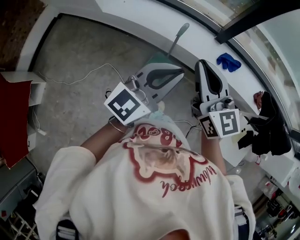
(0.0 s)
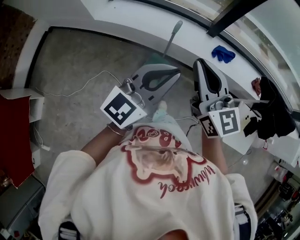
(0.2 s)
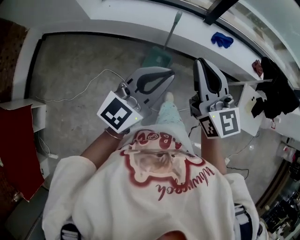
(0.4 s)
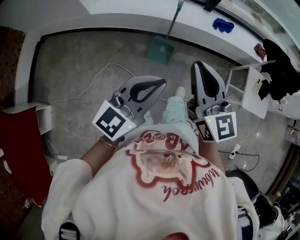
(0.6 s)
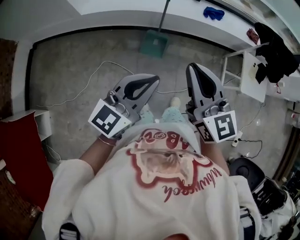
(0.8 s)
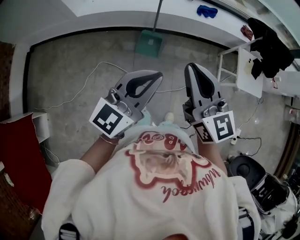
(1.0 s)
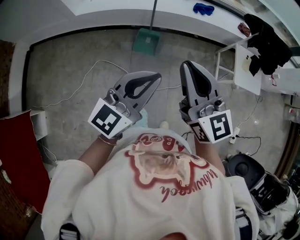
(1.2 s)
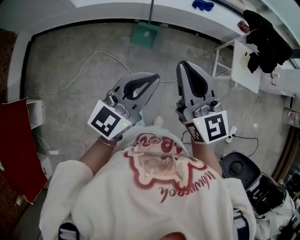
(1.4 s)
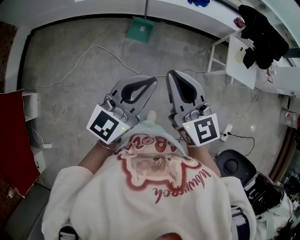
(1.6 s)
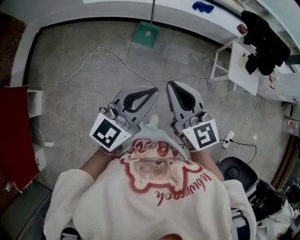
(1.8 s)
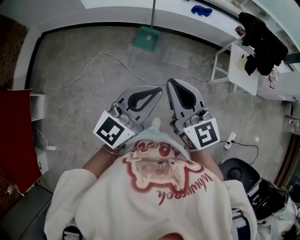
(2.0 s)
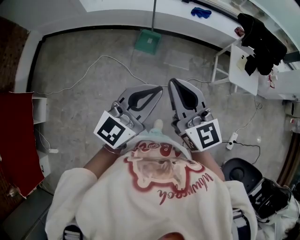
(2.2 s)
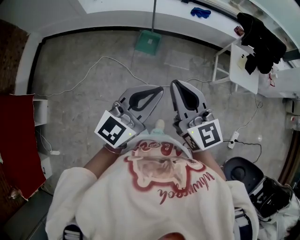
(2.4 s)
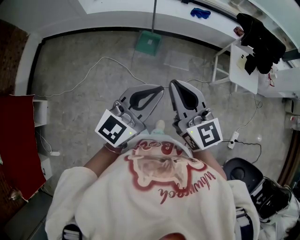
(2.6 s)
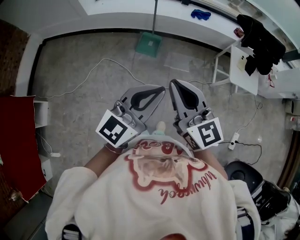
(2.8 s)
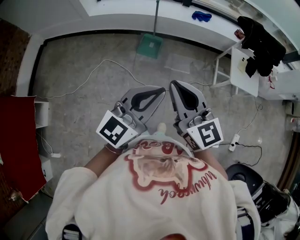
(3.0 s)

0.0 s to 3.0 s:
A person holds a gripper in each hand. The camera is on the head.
0.0 to 1.6 s: The two grippers travel together, backward, roughly 50 cm.
1.6 to 3.0 s: The grippers move only a little.

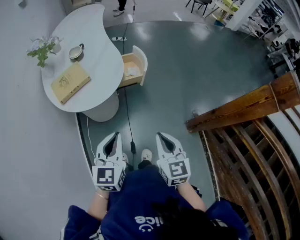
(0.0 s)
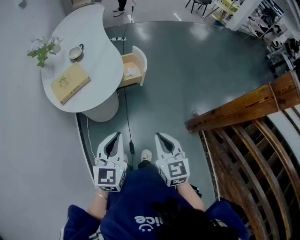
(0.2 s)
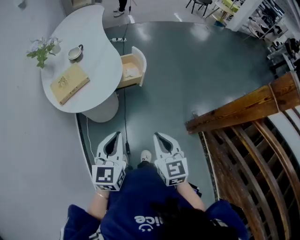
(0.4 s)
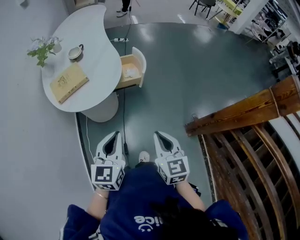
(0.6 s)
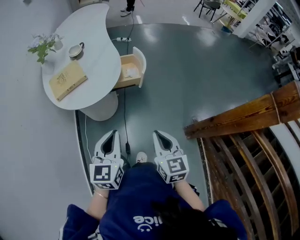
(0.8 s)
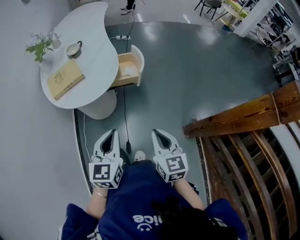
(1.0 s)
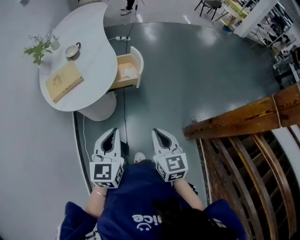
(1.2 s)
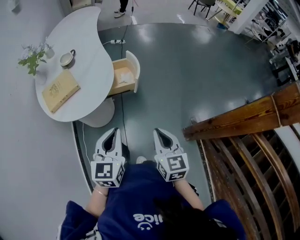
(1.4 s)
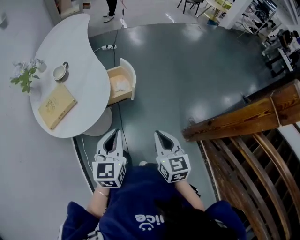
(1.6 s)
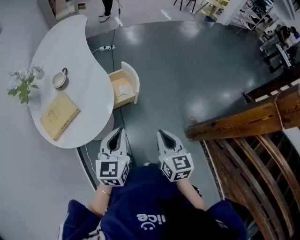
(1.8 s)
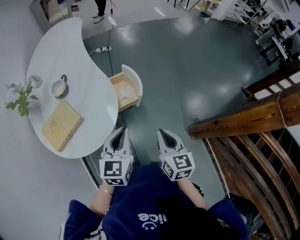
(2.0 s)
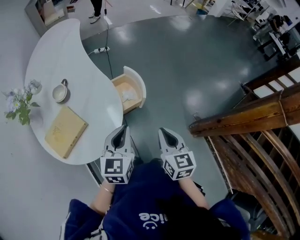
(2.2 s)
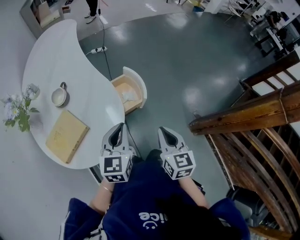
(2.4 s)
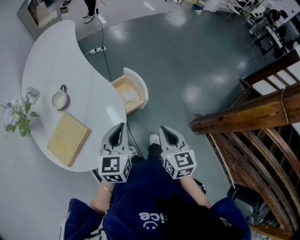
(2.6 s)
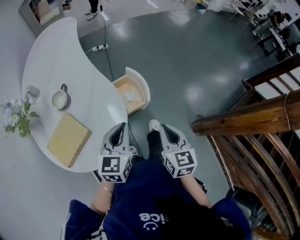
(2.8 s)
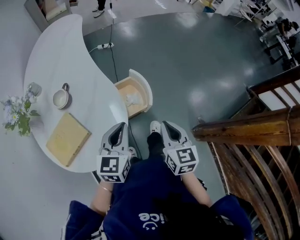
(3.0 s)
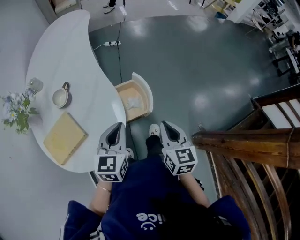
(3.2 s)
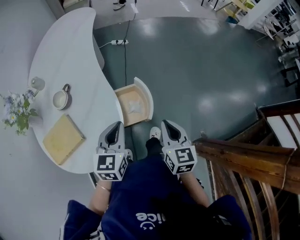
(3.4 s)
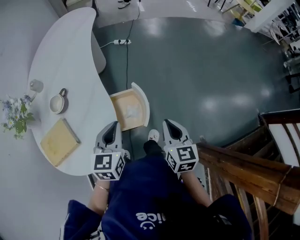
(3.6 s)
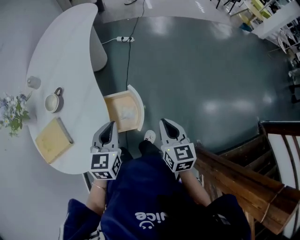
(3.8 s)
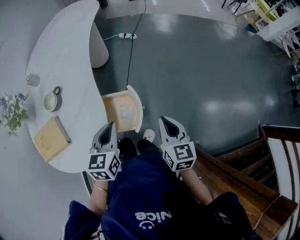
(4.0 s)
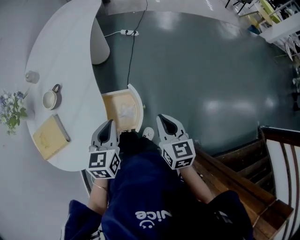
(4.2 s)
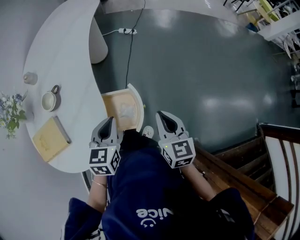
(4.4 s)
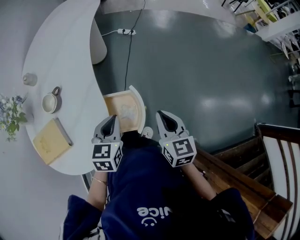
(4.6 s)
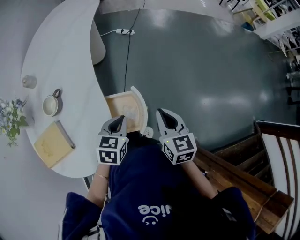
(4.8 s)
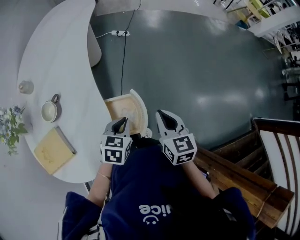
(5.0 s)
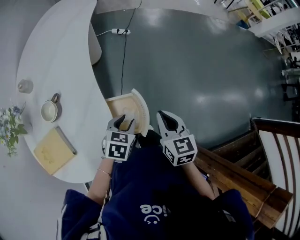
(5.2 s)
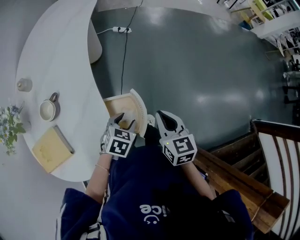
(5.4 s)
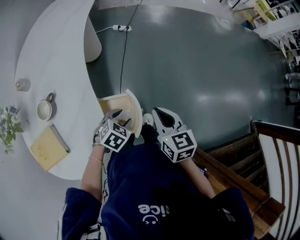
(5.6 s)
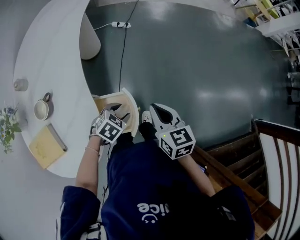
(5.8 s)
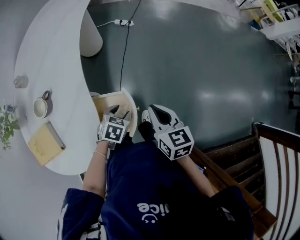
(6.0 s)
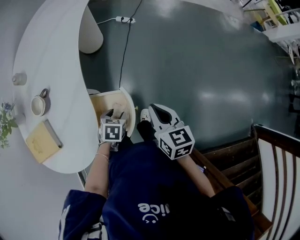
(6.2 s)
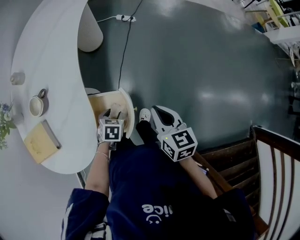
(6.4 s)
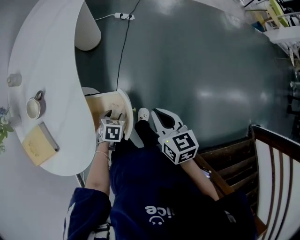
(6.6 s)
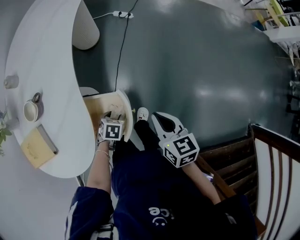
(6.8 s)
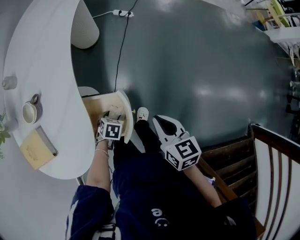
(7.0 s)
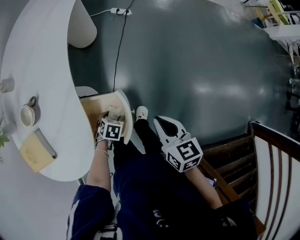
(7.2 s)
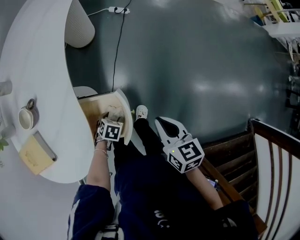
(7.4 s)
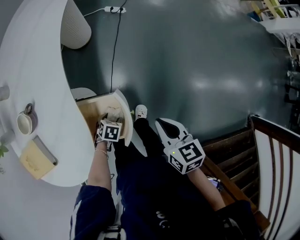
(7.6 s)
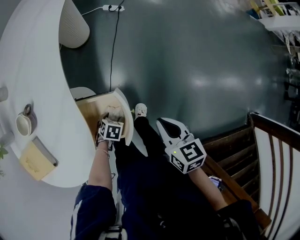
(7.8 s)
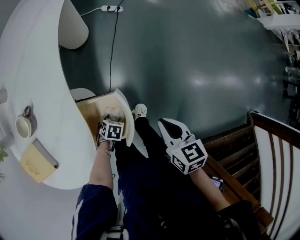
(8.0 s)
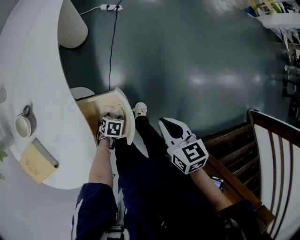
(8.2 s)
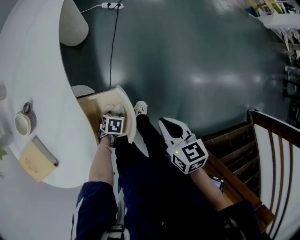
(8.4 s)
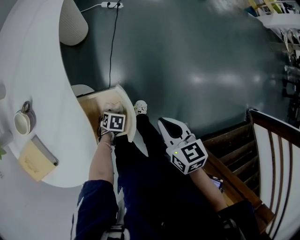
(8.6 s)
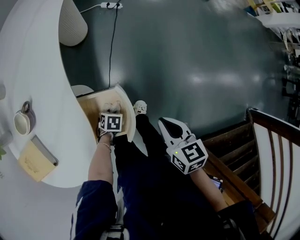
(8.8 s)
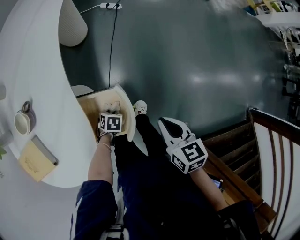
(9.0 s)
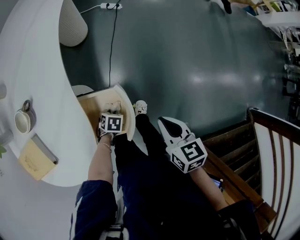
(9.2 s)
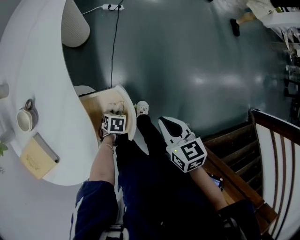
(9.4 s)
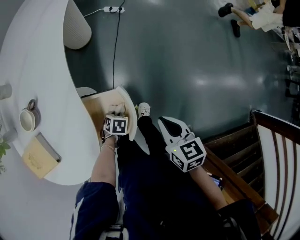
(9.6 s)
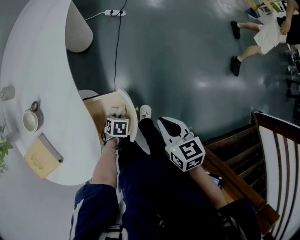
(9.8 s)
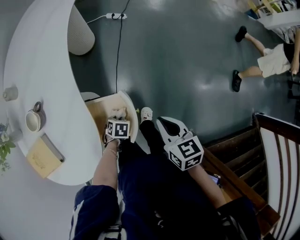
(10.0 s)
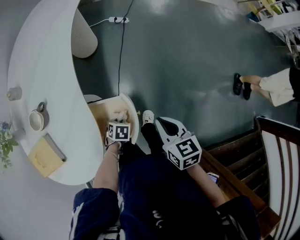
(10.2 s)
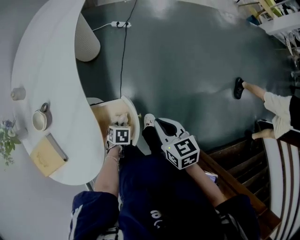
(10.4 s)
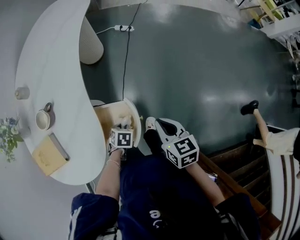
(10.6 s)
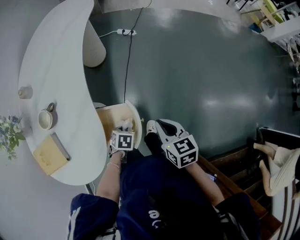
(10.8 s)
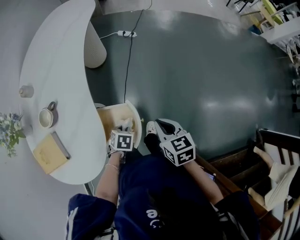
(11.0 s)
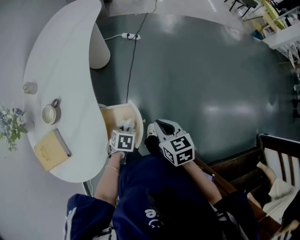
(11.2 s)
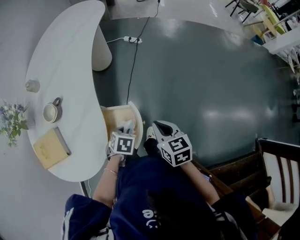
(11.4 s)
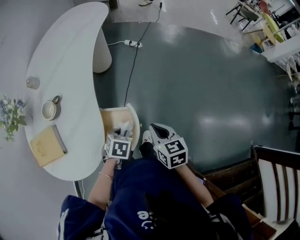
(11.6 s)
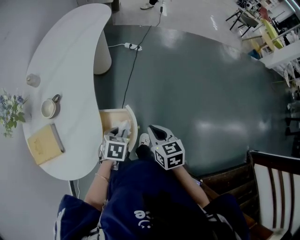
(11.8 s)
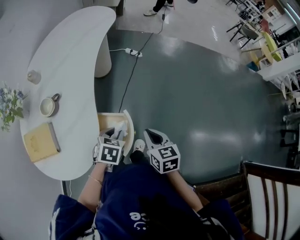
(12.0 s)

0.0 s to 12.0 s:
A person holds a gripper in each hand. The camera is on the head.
0.0 to 1.6 s: The grippers both shift forward and to the right by about 15 cm.
1.6 to 3.0 s: Both grippers travel together forward and to the left, roughly 20 cm.
3.0 to 4.4 s: The left gripper moves some 15 cm, and rotates about 30 degrees. The right gripper moves about 25 cm, and changes its angle by some 20 degrees.
4.4 to 6.0 s: The left gripper moves downward, approximately 15 cm, swivels approximately 40 degrees, and opens up, while the right gripper is displaced forward by approximately 5 cm.
6.0 to 7.6 s: The left gripper shifts about 15 cm downward, while the right gripper goes about 5 cm downward.
7.6 to 9.0 s: The left gripper closes.
9.0 to 10.4 s: The left gripper goes roughly 10 cm upward.
10.4 to 12.0 s: The left gripper heads upward, covering approximately 20 cm, and changes its angle by approximately 20 degrees.

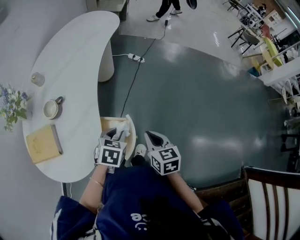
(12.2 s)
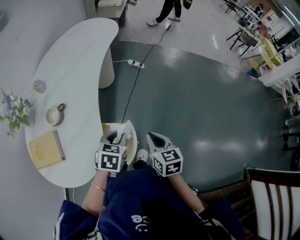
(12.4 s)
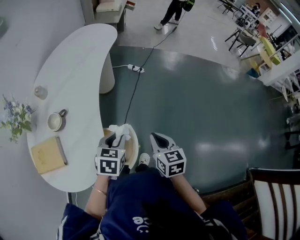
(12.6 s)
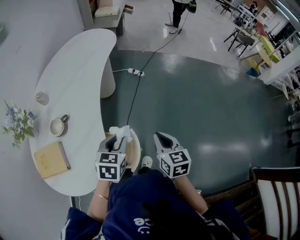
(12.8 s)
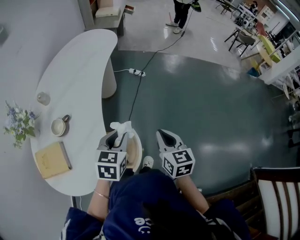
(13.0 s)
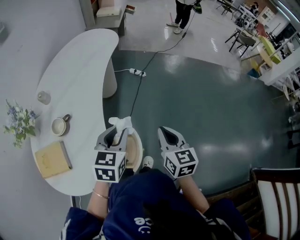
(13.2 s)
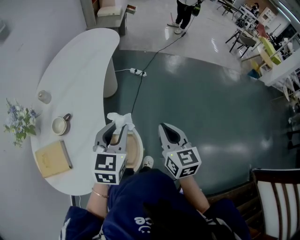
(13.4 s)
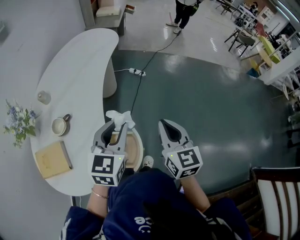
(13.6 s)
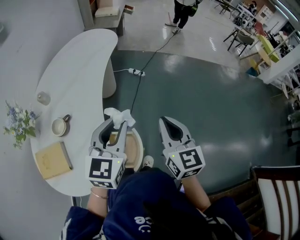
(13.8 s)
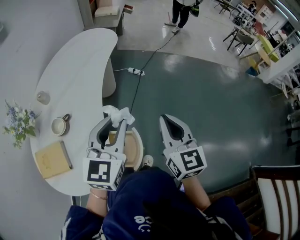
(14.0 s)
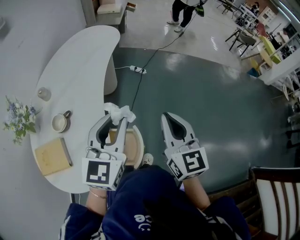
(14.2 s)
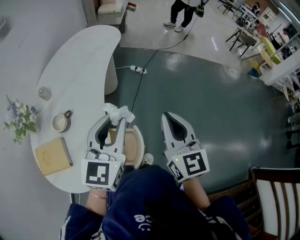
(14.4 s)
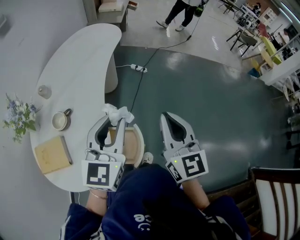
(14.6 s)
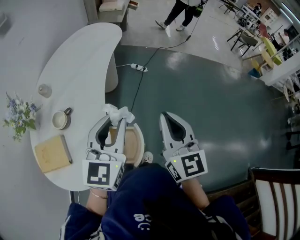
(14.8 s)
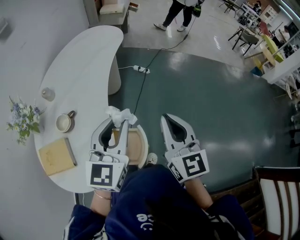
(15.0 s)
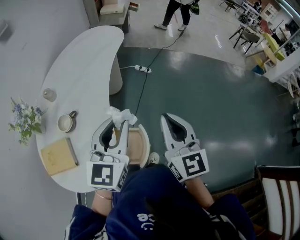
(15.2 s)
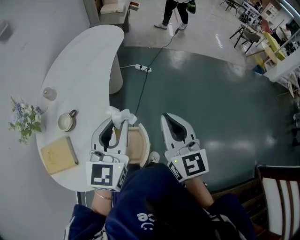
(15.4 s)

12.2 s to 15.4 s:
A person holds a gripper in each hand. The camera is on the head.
12.2 to 13.8 s: The left gripper is displaced upward by about 20 cm, and tips its fingers upward by approximately 40 degrees, while the right gripper travels upward and forward by approximately 20 cm, and turns by some 30 degrees.
13.8 to 15.4 s: The grippers move only a little.

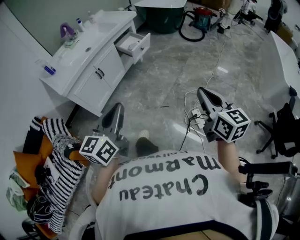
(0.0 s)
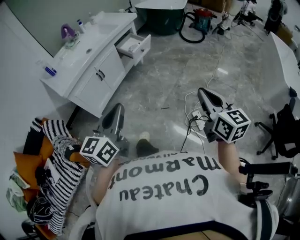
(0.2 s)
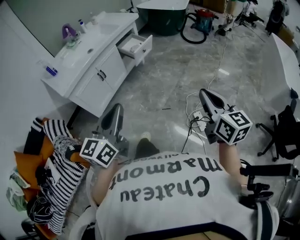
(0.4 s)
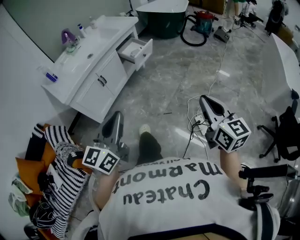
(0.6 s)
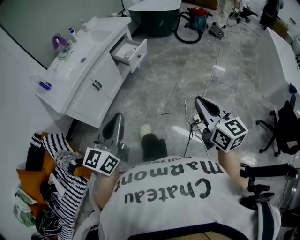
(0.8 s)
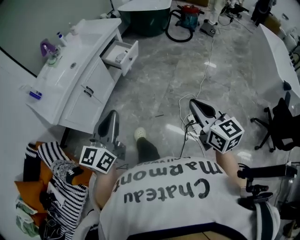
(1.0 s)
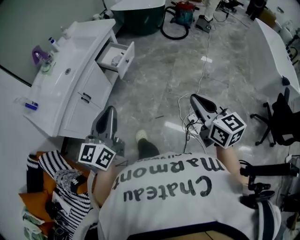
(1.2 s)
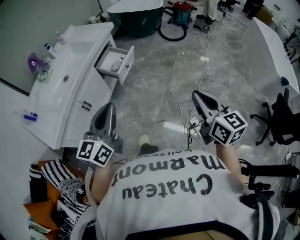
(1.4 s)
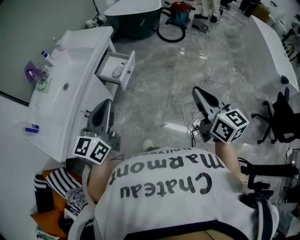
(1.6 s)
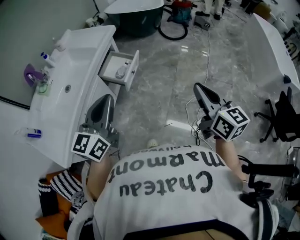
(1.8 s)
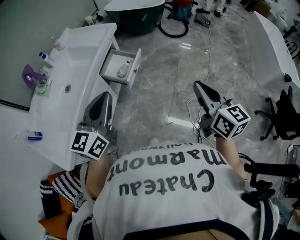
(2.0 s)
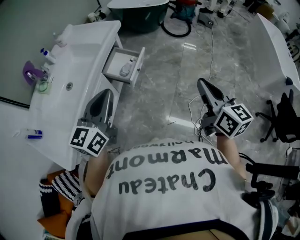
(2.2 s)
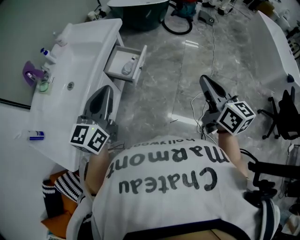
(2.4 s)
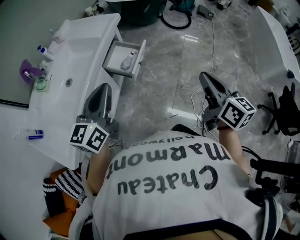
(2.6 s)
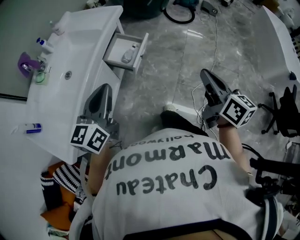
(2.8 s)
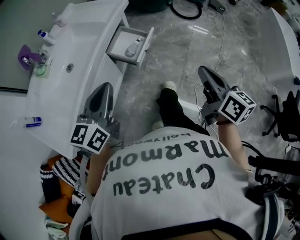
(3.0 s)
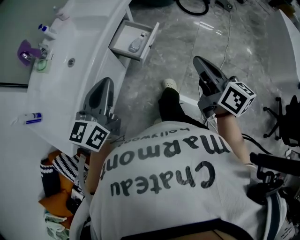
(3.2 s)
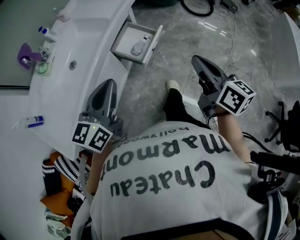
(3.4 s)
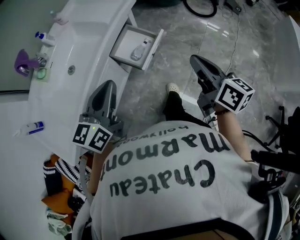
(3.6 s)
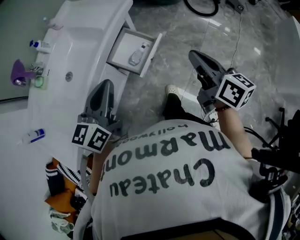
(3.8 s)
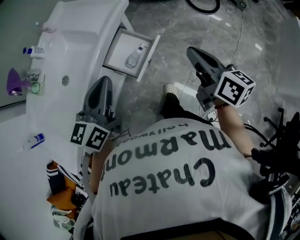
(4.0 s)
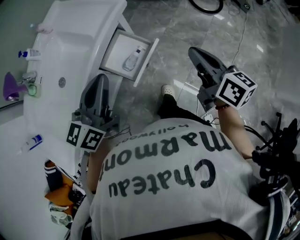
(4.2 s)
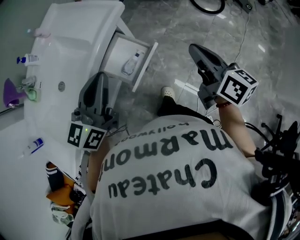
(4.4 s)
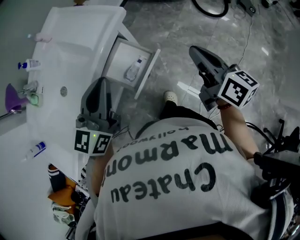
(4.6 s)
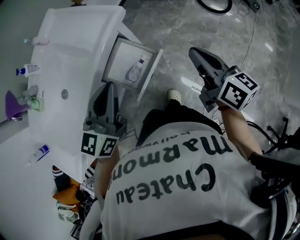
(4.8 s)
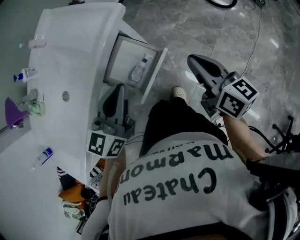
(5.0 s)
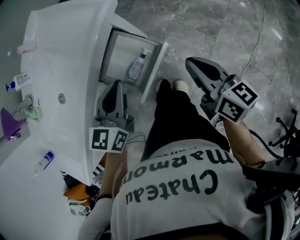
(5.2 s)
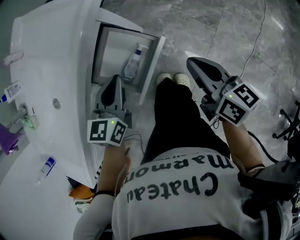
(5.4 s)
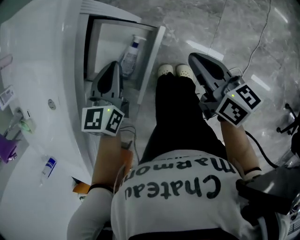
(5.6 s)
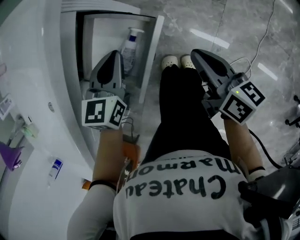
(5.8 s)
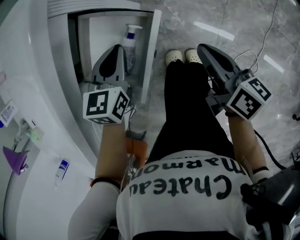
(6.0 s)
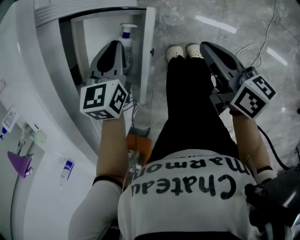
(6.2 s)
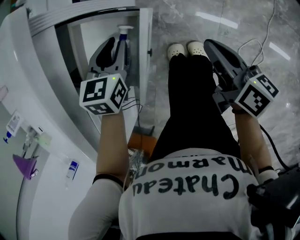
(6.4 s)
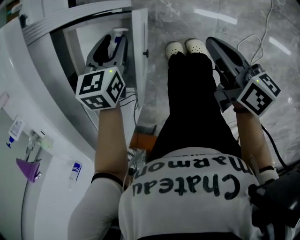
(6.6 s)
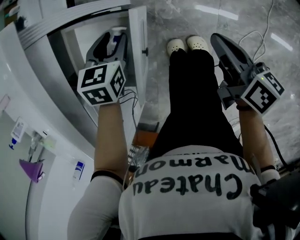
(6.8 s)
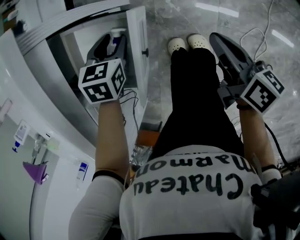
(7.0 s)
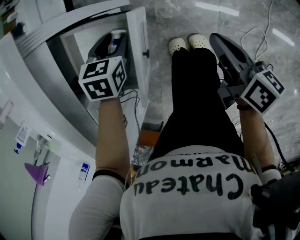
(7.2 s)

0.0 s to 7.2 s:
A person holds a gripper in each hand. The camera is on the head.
0.0 to 1.4 s: The two grippers go roughly 25 cm forward.
1.4 to 2.8 s: Both grippers move forward and to the left, approximately 20 cm.
2.8 to 4.4 s: The grippers both shift forward by roughly 35 cm. The right gripper turns by some 20 degrees.
4.4 to 5.8 s: Both grippers move downward, some 30 cm. The left gripper tilts its fingers approximately 30 degrees downward.
5.8 to 7.2 s: The left gripper travels downward by approximately 15 cm, angles its fingers downward, by roughly 30 degrees, and opens; the right gripper goes some 10 cm downward and to the right, and rotates roughly 20 degrees.
